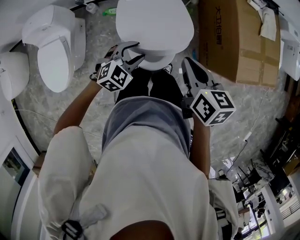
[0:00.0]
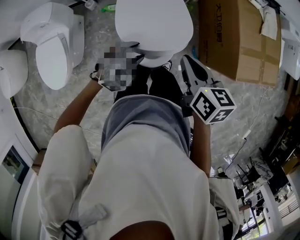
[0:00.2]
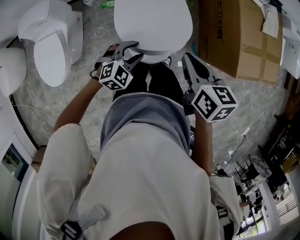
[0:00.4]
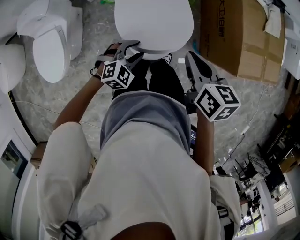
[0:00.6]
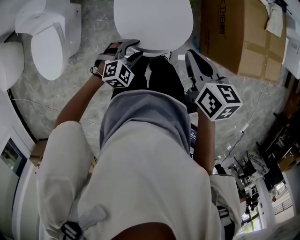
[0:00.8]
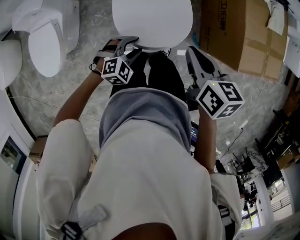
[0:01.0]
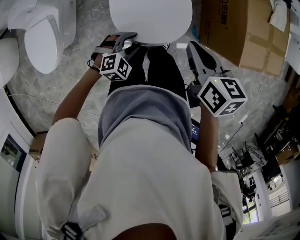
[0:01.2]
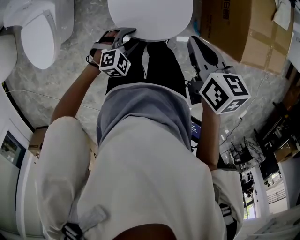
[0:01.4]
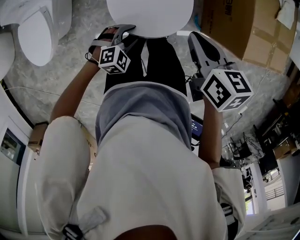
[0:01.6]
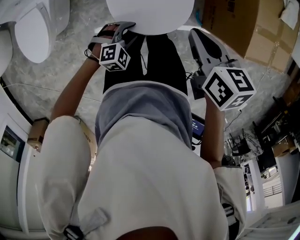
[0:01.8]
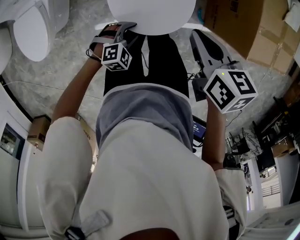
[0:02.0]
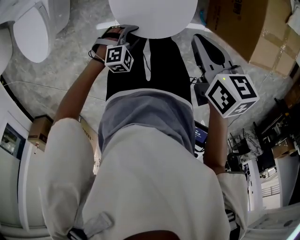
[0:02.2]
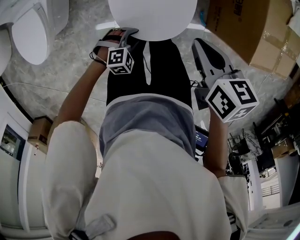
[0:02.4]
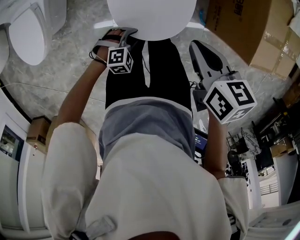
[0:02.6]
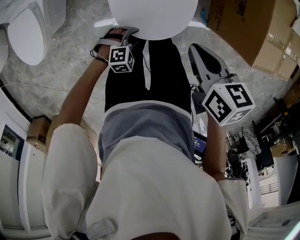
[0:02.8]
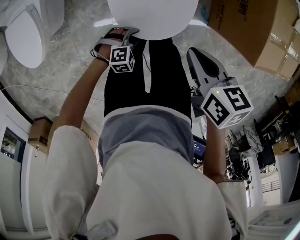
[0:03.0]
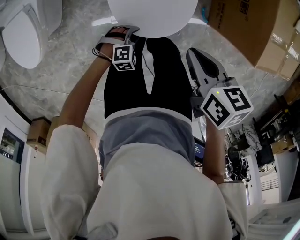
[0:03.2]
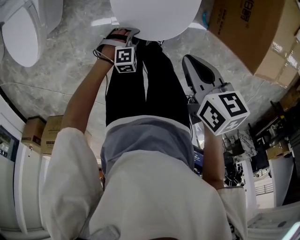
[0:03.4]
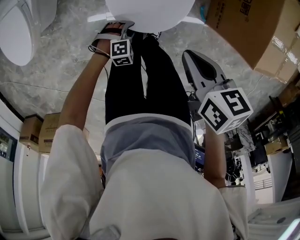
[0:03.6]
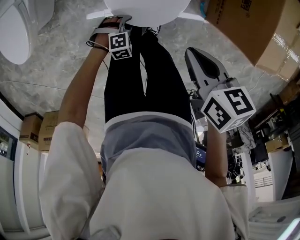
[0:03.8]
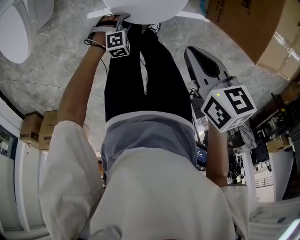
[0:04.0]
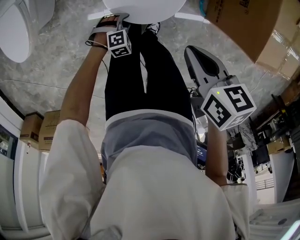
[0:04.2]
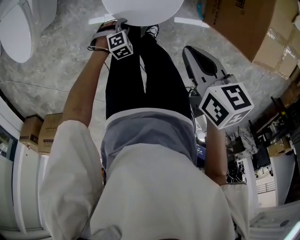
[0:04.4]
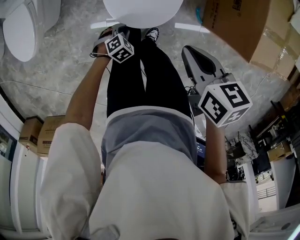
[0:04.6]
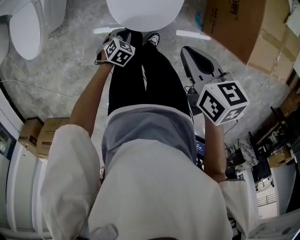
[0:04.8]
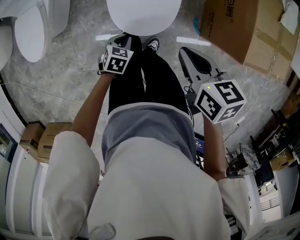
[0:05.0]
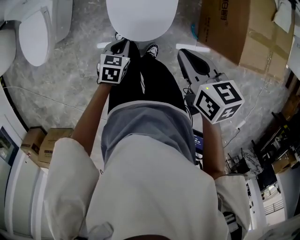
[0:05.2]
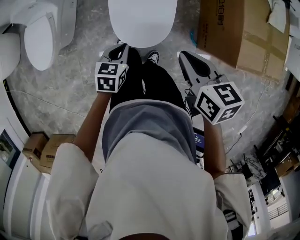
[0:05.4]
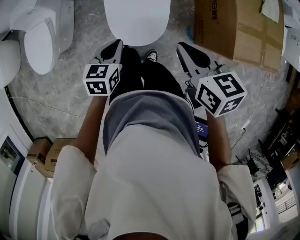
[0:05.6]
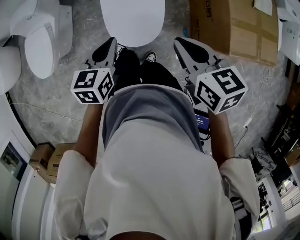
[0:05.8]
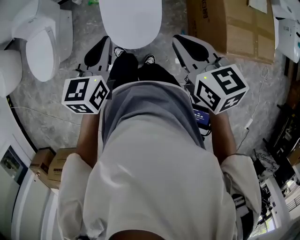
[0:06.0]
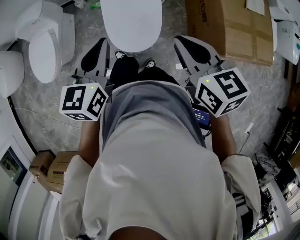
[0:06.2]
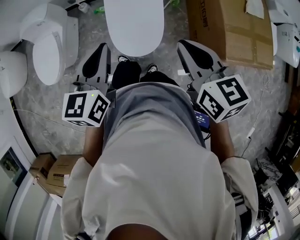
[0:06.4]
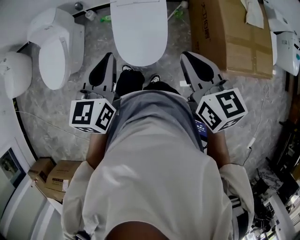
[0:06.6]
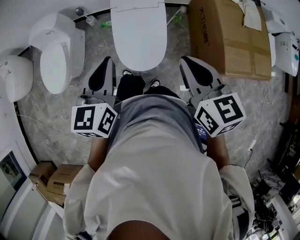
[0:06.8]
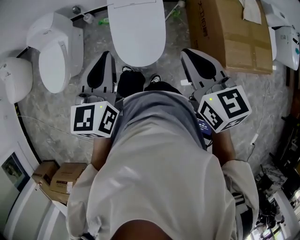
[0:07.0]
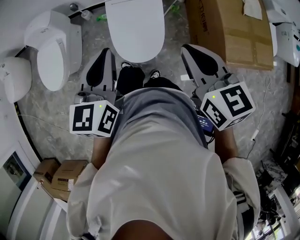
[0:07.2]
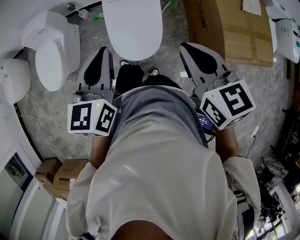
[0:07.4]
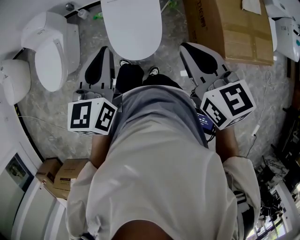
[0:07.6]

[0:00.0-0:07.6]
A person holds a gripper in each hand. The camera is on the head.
0:00.0 to 0:01.6: The right gripper shifts approximately 5 cm downward. Meanwhile the left gripper shifts roughly 15 cm downward and backward.
0:01.6 to 0:03.0: The right gripper travels downward by approximately 10 cm. The left gripper heads downward, covering some 15 cm.
0:03.0 to 0:04.6: The left gripper changes its angle by some 30 degrees; the right gripper shifts by about 5 cm.
0:04.6 to 0:06.0: The right gripper shifts roughly 20 cm upward, and swivels roughly 30 degrees; the left gripper heads upward, covering roughly 50 cm, and angles its fingers upward, by some 50 degrees.
0:06.0 to 0:07.6: Both grippers travel together upward, some 10 cm.

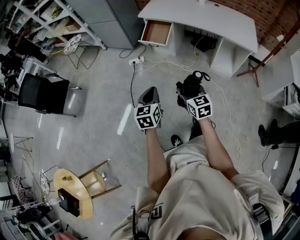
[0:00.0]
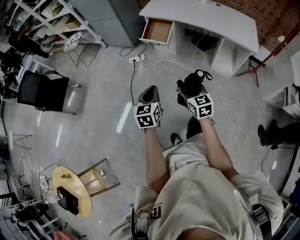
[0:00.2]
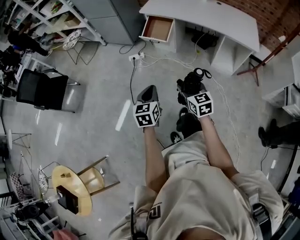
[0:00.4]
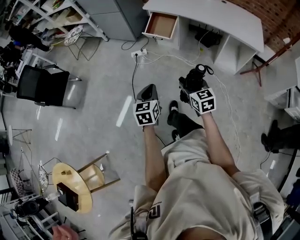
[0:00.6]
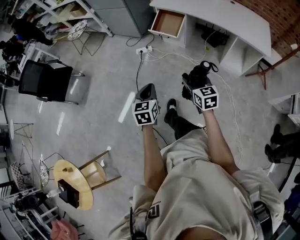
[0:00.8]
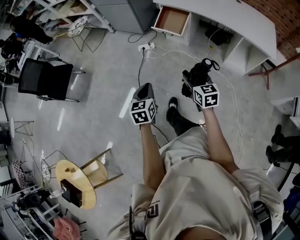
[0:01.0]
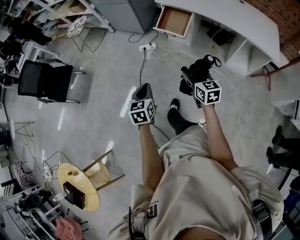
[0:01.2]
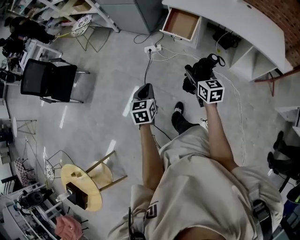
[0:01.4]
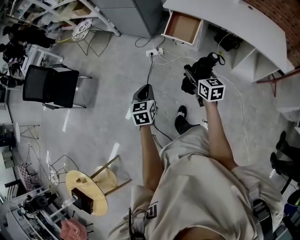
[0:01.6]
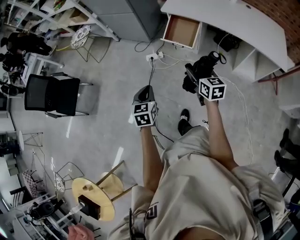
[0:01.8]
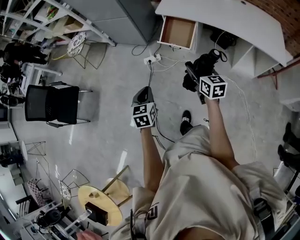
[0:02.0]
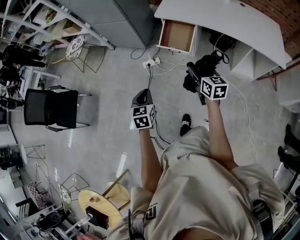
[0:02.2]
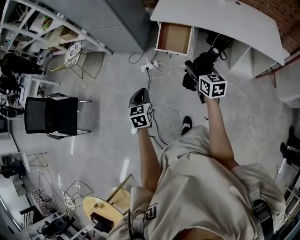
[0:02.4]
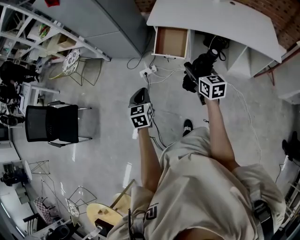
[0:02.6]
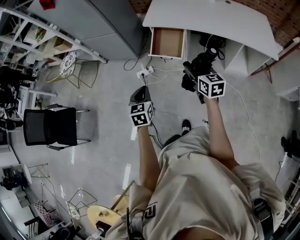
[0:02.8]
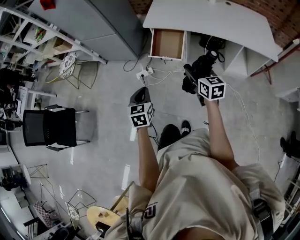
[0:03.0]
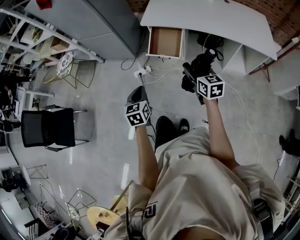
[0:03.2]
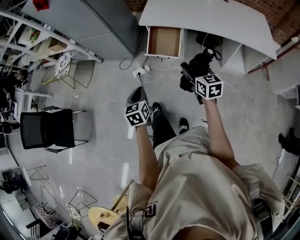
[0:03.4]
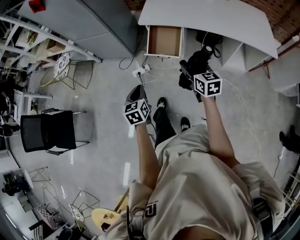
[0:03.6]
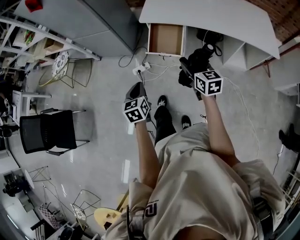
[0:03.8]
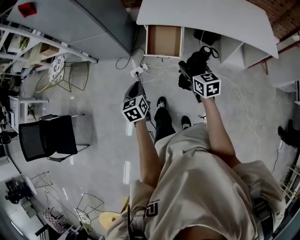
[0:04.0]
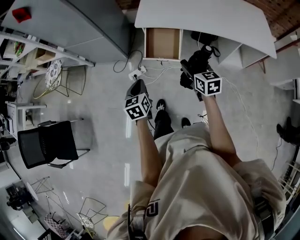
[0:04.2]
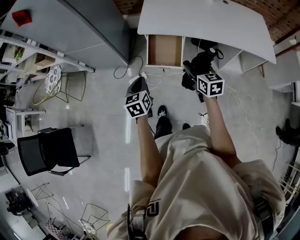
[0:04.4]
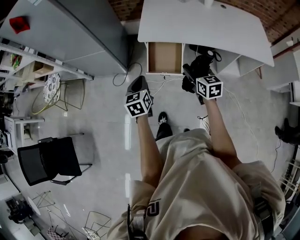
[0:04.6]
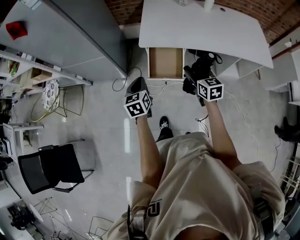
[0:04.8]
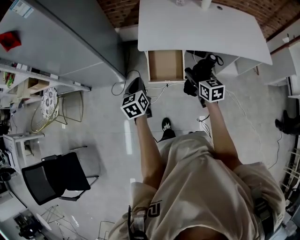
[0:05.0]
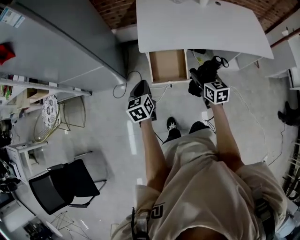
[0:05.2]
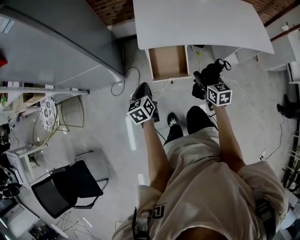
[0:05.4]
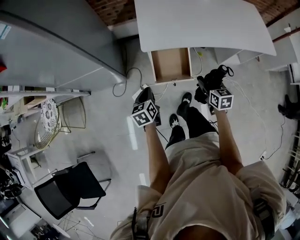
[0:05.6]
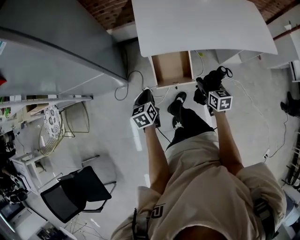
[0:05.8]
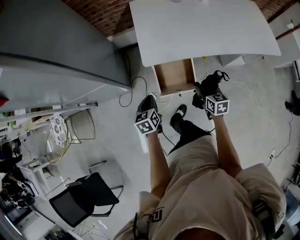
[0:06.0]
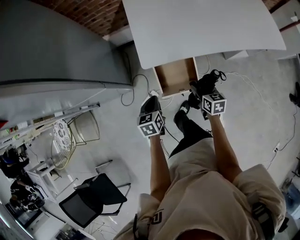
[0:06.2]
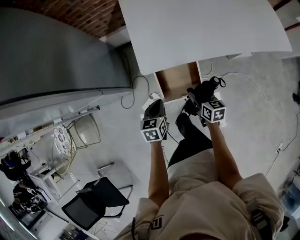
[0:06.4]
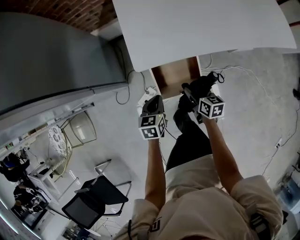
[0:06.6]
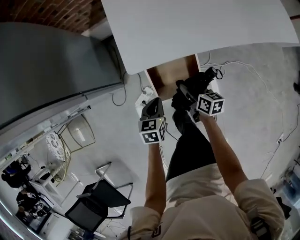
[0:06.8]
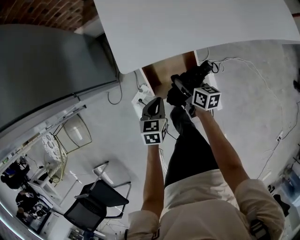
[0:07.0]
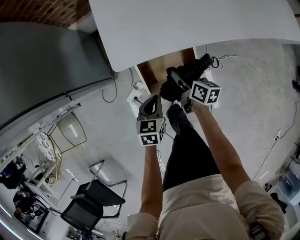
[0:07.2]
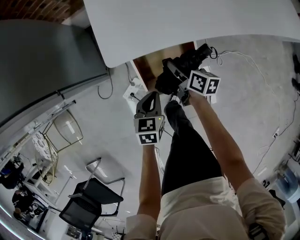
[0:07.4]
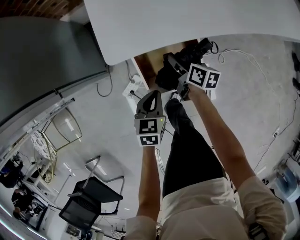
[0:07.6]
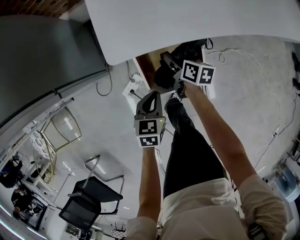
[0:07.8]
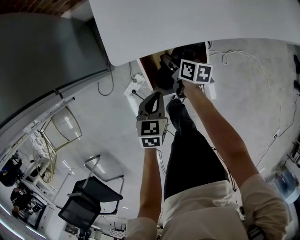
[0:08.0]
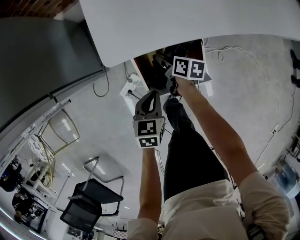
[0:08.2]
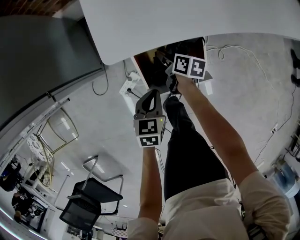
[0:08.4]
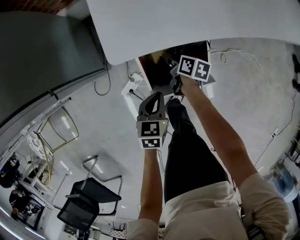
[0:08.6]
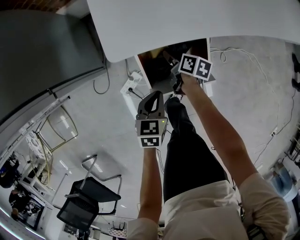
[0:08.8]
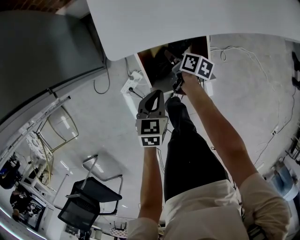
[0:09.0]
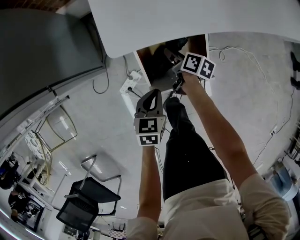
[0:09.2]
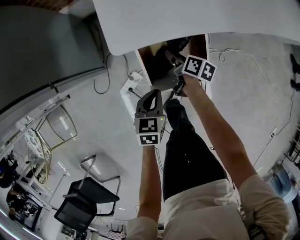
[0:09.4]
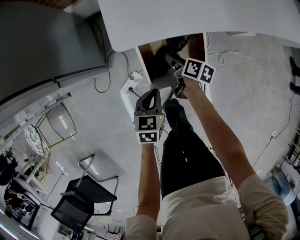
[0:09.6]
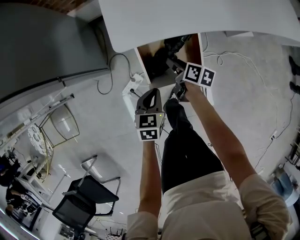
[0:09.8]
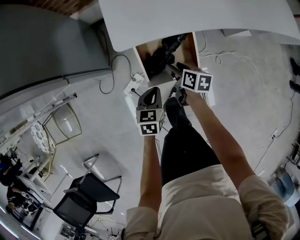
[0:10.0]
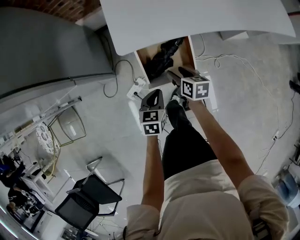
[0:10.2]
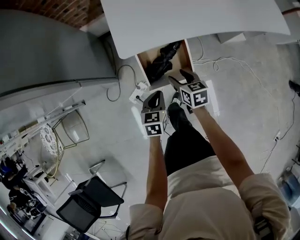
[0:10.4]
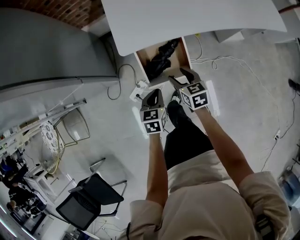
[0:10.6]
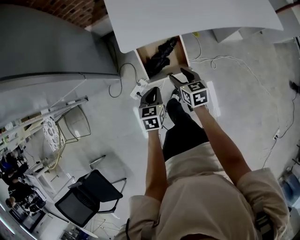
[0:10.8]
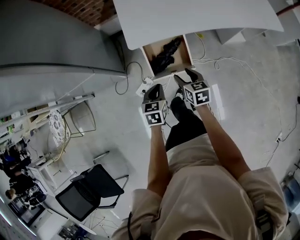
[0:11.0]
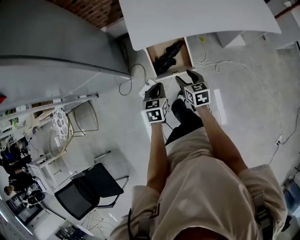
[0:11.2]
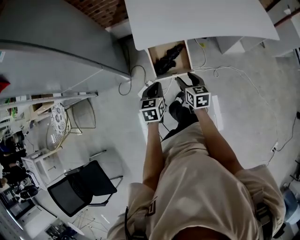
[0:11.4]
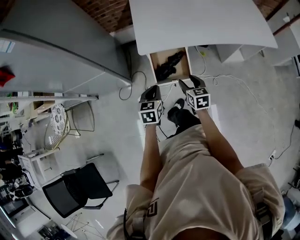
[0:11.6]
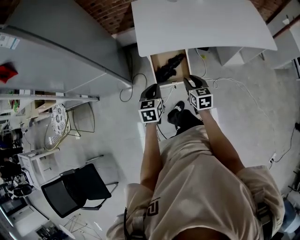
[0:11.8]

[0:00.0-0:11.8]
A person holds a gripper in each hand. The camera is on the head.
0:00.0 to 0:01.4: The left gripper is displaced to the left and forward by approximately 20 cm; the right gripper is displaced forward by about 20 cm.
0:01.4 to 0:03.0: Both grippers move forward, roughly 15 cm.
0:03.0 to 0:04.4: Both grippers move forward, some 15 cm.
0:04.4 to 0:06.0: The left gripper moves forward and downward, some 25 cm, while the right gripper goes some 20 cm downward and forward, and swivels approximately 20 degrees.
0:06.0 to 0:07.4: The right gripper moves downward and forward, some 25 cm, and changes its angle by about 40 degrees. Meanwhile the left gripper is displaced downward and to the right by approximately 20 cm, and turns by approximately 30 degrees.
0:07.4 to 0:08.8: The right gripper heads downward, covering roughly 10 cm.
0:08.8 to 0:10.4: The right gripper is displaced upward and backward by approximately 20 cm, and changes its angle by some 40 degrees; the left gripper is displaced upward by approximately 10 cm.
0:10.4 to 0:11.8: The left gripper moves upward, about 20 cm, while the right gripper travels upward and backward by roughly 20 cm, and closes up.

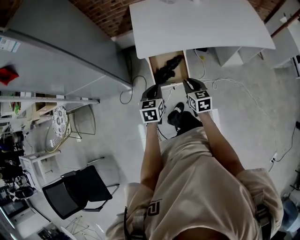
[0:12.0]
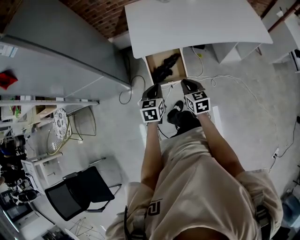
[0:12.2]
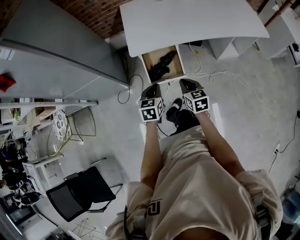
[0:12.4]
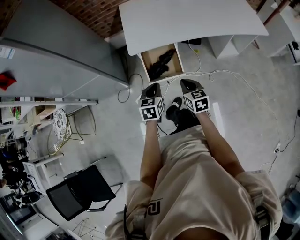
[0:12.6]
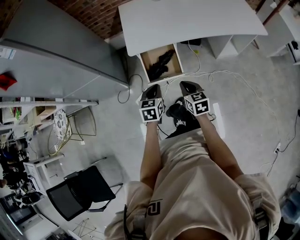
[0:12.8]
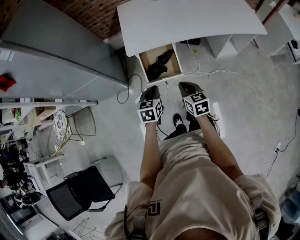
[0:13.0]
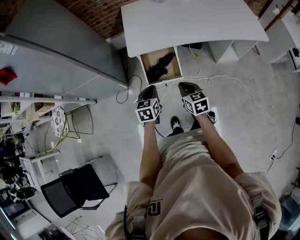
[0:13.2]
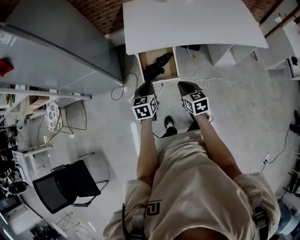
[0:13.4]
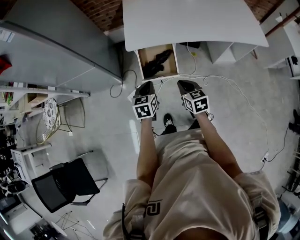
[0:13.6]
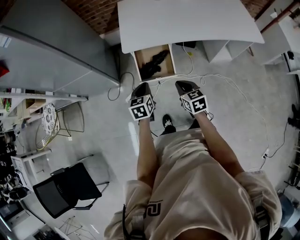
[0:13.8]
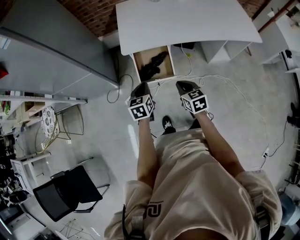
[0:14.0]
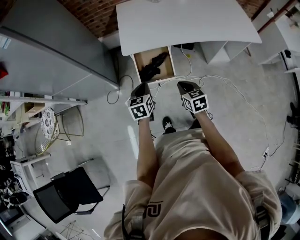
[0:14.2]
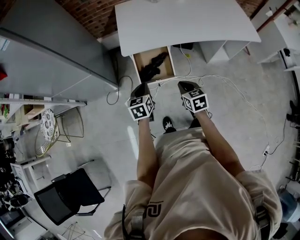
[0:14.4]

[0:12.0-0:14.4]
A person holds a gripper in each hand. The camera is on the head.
0:12.0 to 0:13.2: The left gripper moves some 5 cm. The right gripper travels backward by some 5 cm.
0:13.2 to 0:14.4: The grippers move only a little.

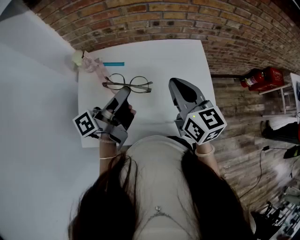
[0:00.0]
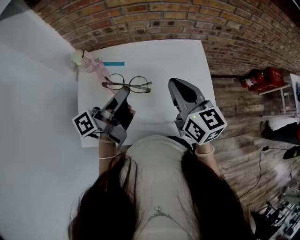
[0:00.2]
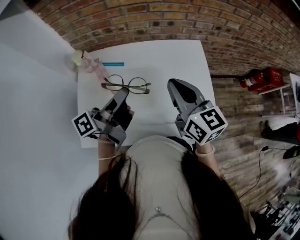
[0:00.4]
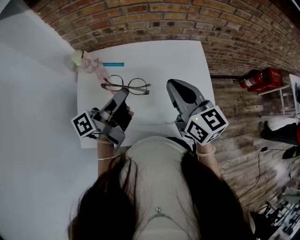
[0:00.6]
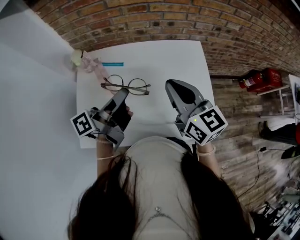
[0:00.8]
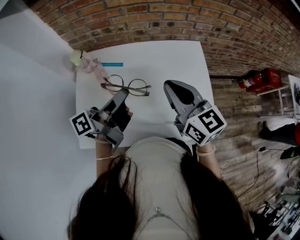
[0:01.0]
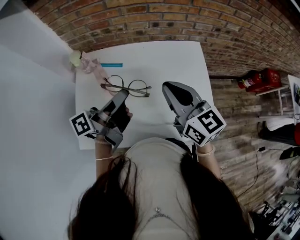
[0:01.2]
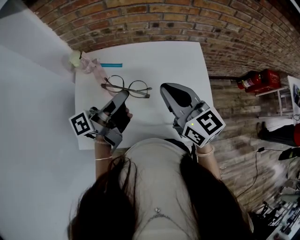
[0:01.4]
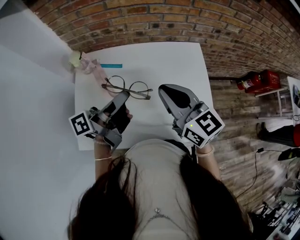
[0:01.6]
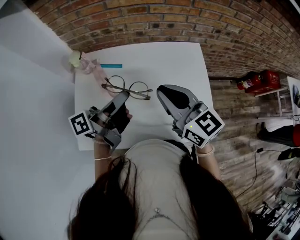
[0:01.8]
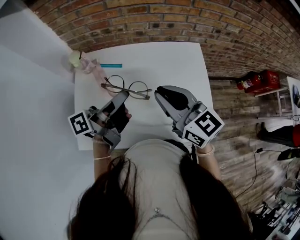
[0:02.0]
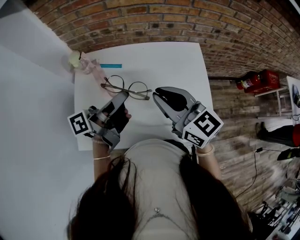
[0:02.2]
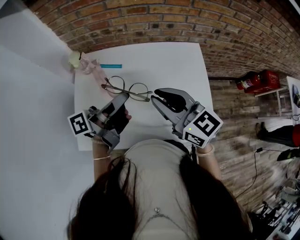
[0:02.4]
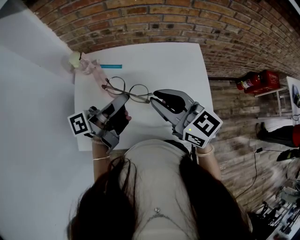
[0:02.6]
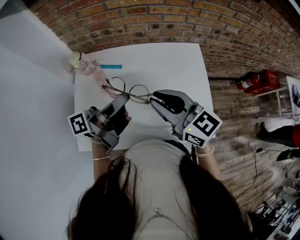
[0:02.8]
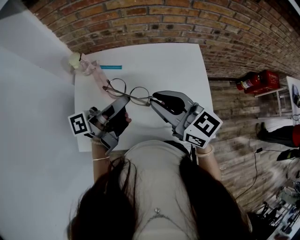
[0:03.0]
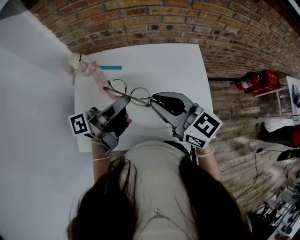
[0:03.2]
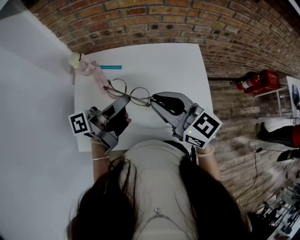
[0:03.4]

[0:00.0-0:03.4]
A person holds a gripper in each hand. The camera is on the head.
0:00.0 to 0:01.6: There are only small adjustments of the grippers.
0:01.6 to 0:03.4: There are only small adjustments of the grippers.
